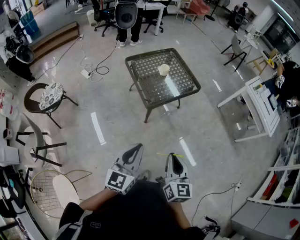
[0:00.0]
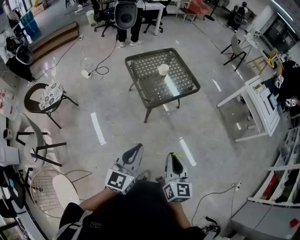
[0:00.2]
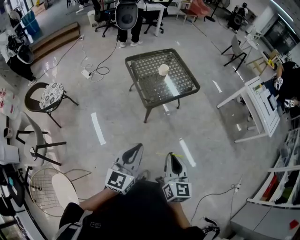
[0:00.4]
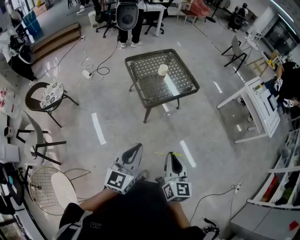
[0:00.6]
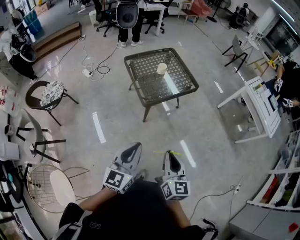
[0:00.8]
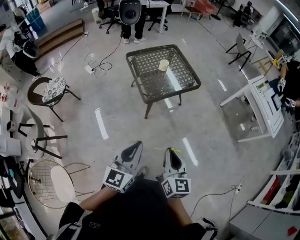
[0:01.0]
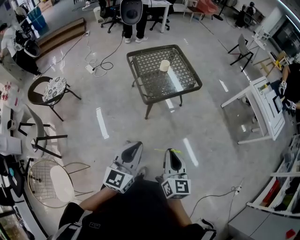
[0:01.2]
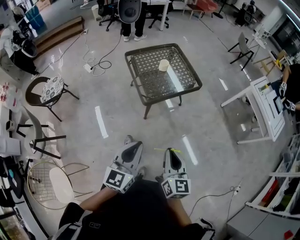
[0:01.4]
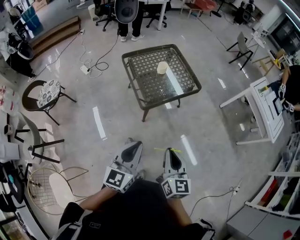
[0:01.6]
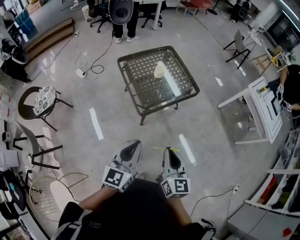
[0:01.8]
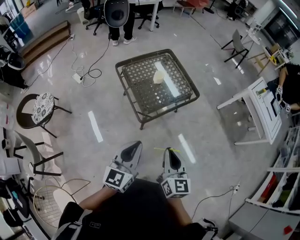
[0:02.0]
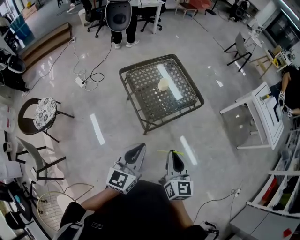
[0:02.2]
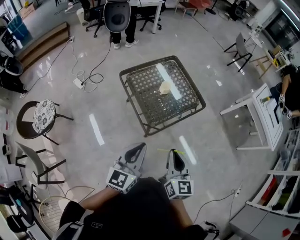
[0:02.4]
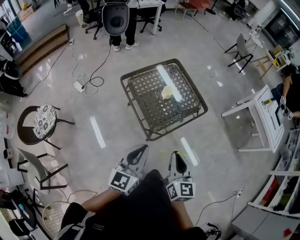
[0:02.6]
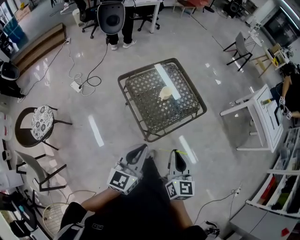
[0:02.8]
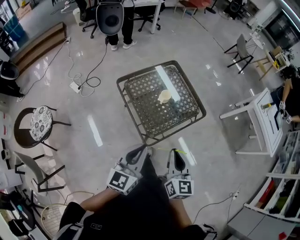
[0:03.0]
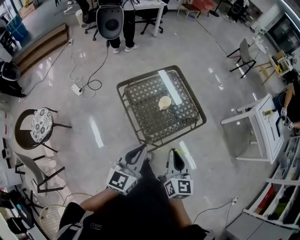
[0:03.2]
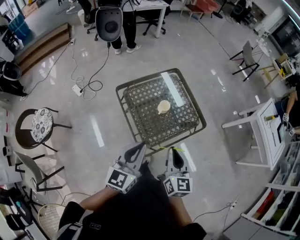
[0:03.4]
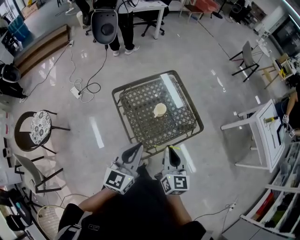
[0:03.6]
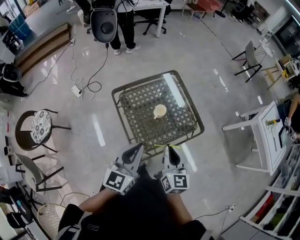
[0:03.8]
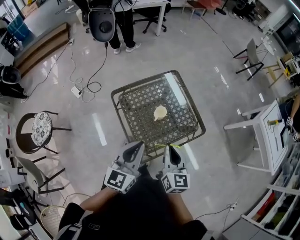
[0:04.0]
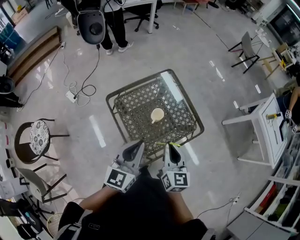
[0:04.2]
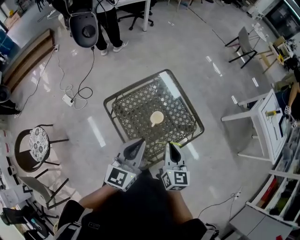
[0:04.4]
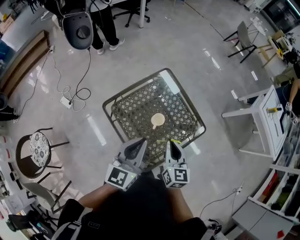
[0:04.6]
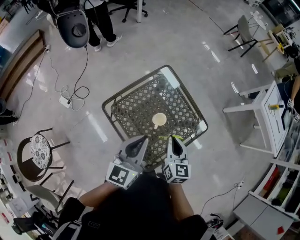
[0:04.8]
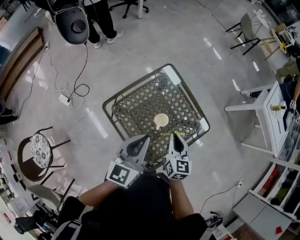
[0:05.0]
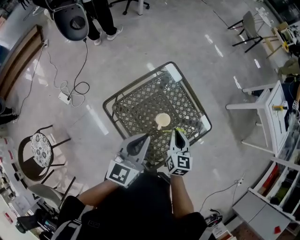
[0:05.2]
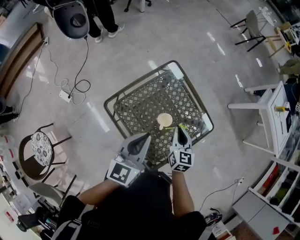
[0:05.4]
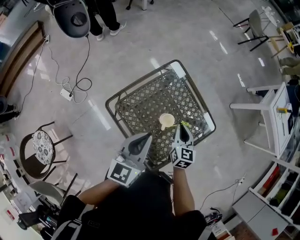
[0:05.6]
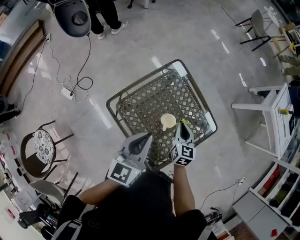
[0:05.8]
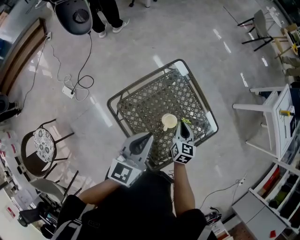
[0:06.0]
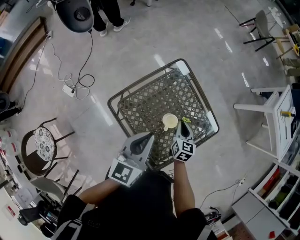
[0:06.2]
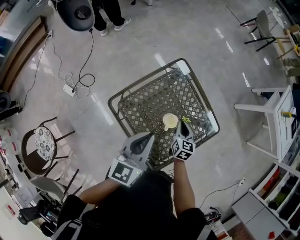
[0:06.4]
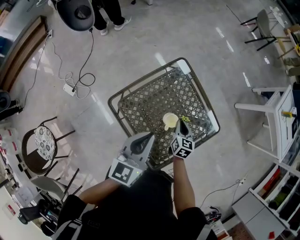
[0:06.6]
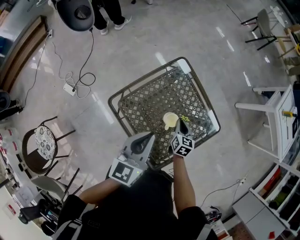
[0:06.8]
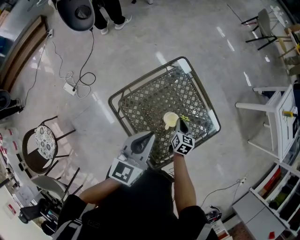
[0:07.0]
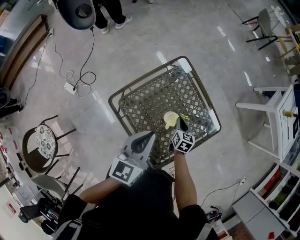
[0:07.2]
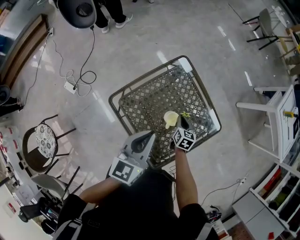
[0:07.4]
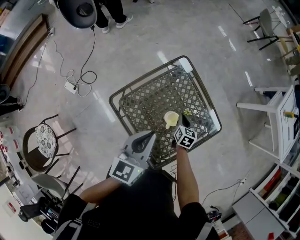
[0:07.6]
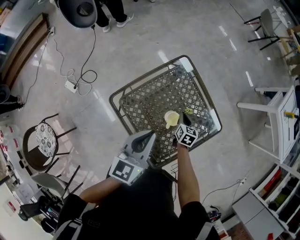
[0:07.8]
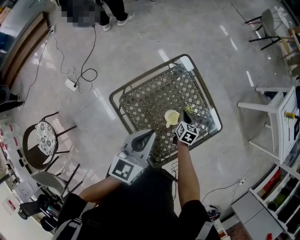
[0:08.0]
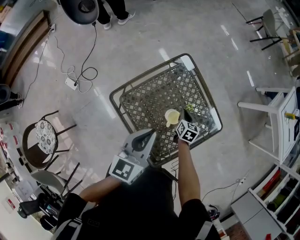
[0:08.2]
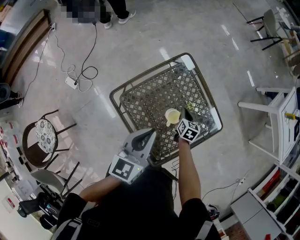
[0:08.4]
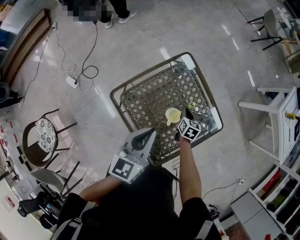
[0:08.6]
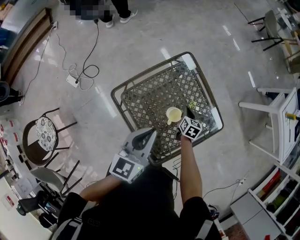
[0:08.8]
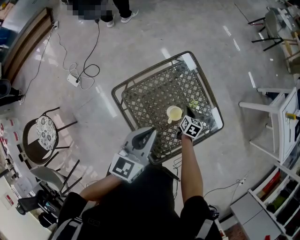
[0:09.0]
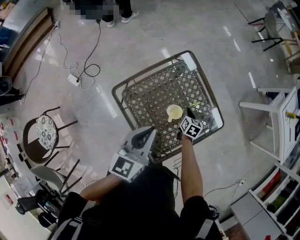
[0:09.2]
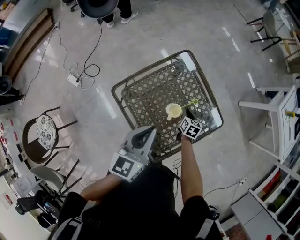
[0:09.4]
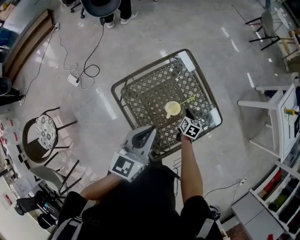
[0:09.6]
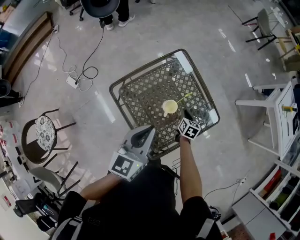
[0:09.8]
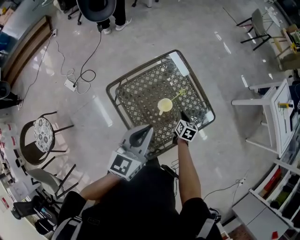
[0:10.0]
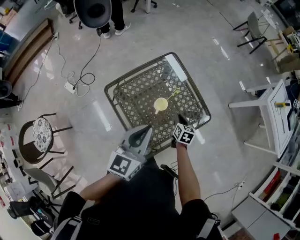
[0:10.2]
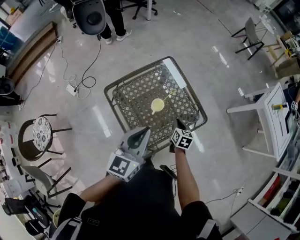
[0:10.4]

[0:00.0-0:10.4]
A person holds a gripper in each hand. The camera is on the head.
0:00.0 to 0:01.4: The two grippers go some 5 cm to the right.
0:01.4 to 0:03.0: Both grippers move forward and to the left, approximately 35 cm.
0:03.0 to 0:04.4: Both grippers travel together forward, about 25 cm.
0:04.4 to 0:06.0: The right gripper travels downward and forward by roughly 25 cm; the left gripper is displaced forward, to the left and downward by approximately 15 cm.
0:06.0 to 0:07.4: The right gripper moves downward, approximately 10 cm.
0:07.4 to 0:09.0: The grippers make only small movements.
0:09.0 to 0:10.4: The left gripper travels backward, to the right and upward by about 15 cm; the right gripper travels backward, upward and to the right by approximately 20 cm.

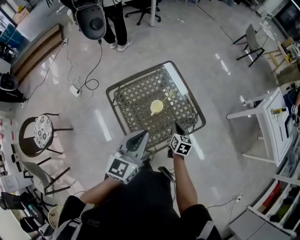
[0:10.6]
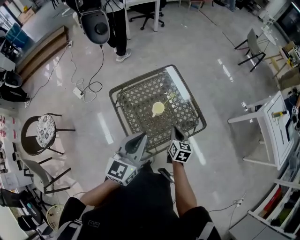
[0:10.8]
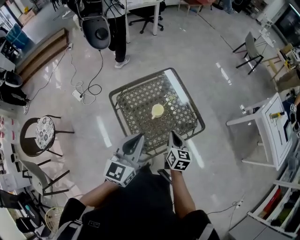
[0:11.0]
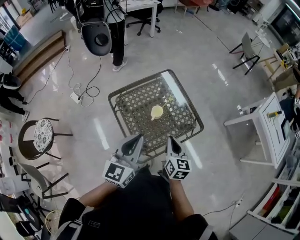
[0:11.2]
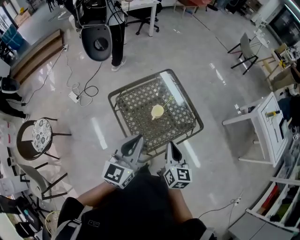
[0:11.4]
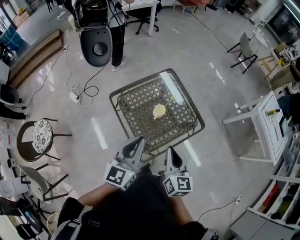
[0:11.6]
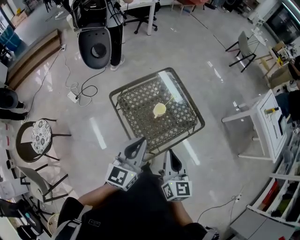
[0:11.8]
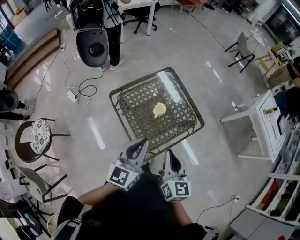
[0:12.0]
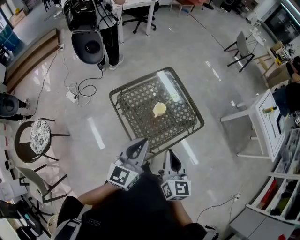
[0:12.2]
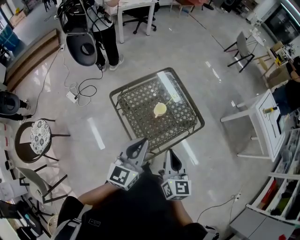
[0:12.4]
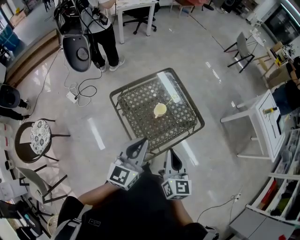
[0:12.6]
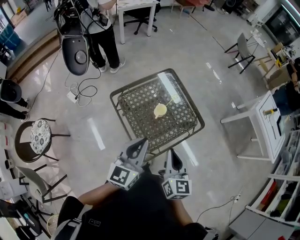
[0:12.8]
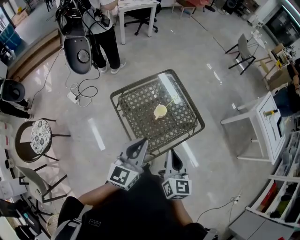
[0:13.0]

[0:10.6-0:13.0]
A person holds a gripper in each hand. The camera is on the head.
0:10.6 to 0:11.8: The right gripper heads upward, backward and to the left, covering about 30 cm, and swivels roughly 30 degrees, while the left gripper heads to the left and backward, covering approximately 10 cm.
0:11.8 to 0:13.0: The two grippers keep their place.

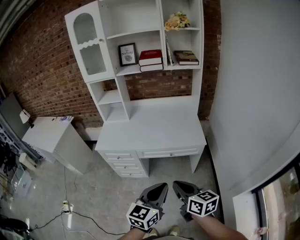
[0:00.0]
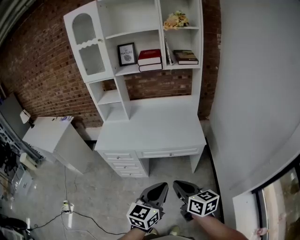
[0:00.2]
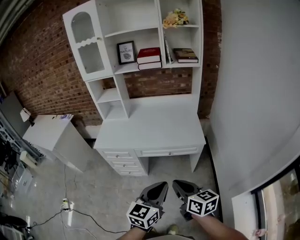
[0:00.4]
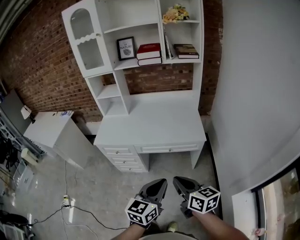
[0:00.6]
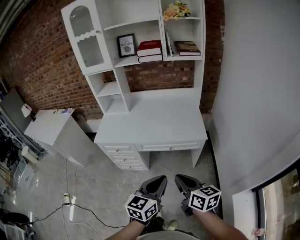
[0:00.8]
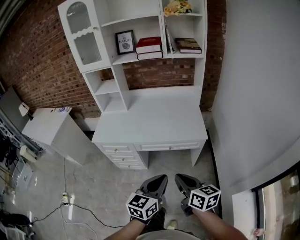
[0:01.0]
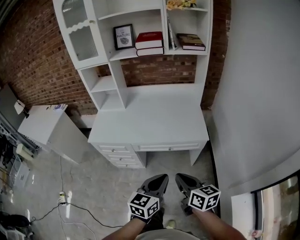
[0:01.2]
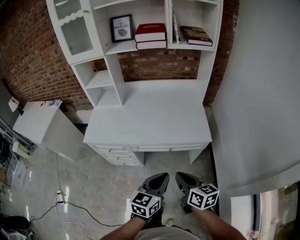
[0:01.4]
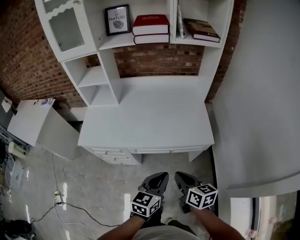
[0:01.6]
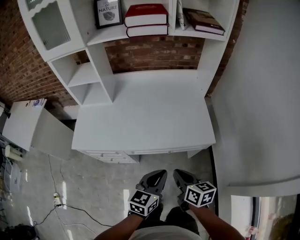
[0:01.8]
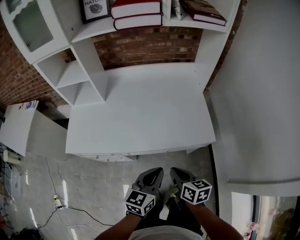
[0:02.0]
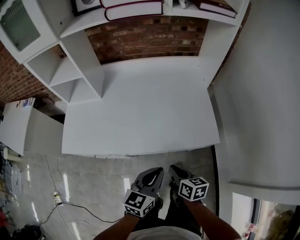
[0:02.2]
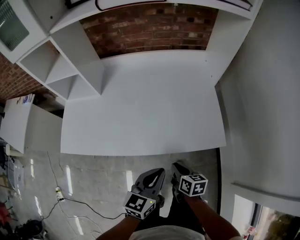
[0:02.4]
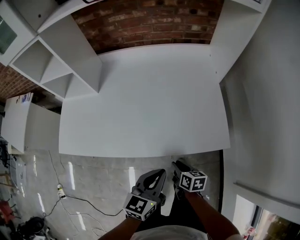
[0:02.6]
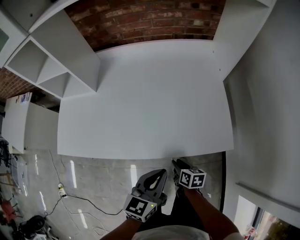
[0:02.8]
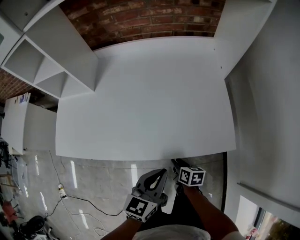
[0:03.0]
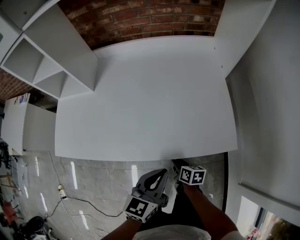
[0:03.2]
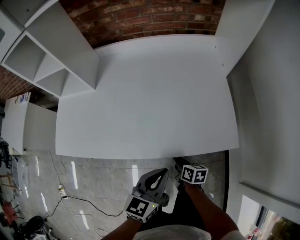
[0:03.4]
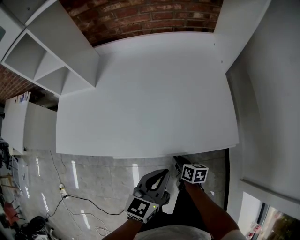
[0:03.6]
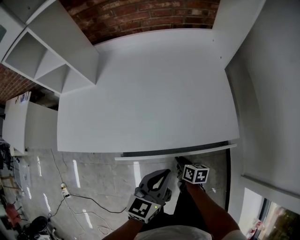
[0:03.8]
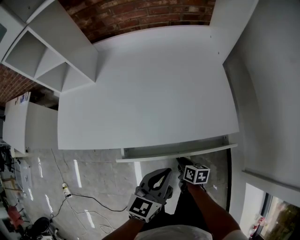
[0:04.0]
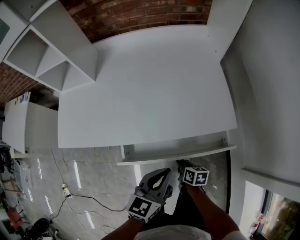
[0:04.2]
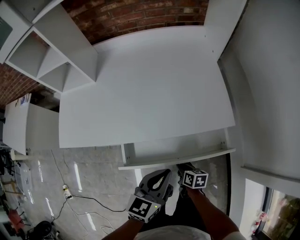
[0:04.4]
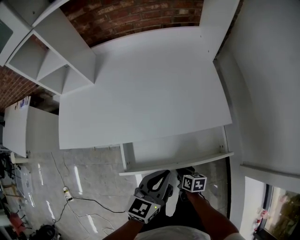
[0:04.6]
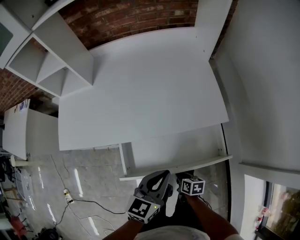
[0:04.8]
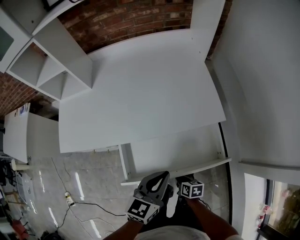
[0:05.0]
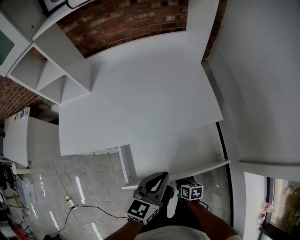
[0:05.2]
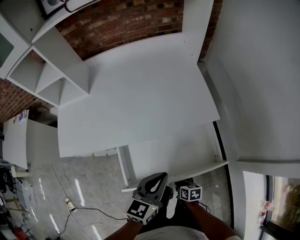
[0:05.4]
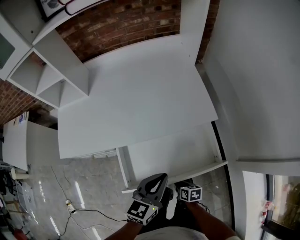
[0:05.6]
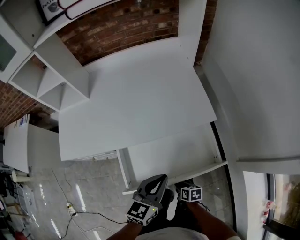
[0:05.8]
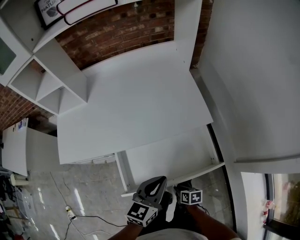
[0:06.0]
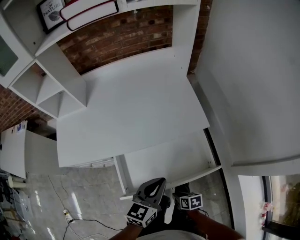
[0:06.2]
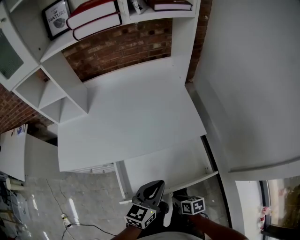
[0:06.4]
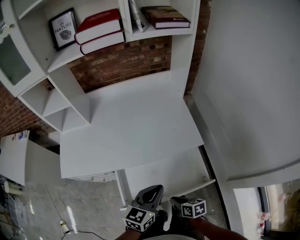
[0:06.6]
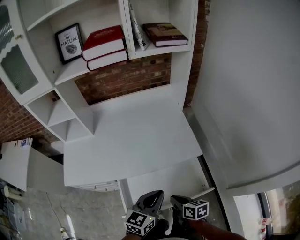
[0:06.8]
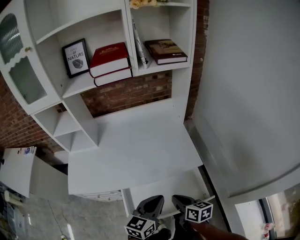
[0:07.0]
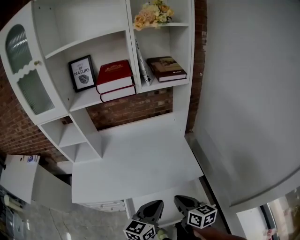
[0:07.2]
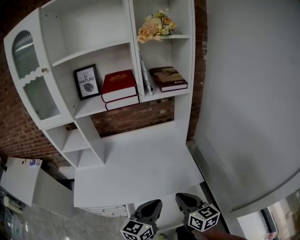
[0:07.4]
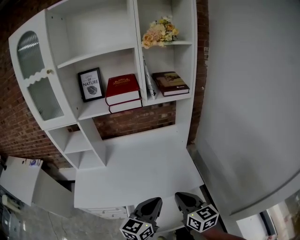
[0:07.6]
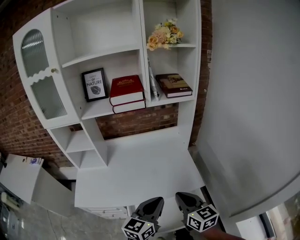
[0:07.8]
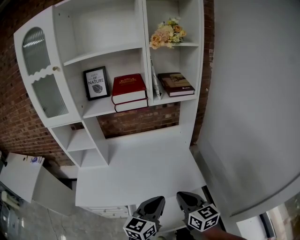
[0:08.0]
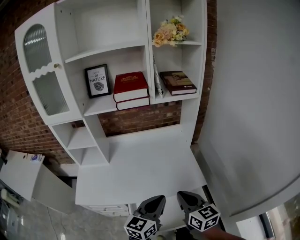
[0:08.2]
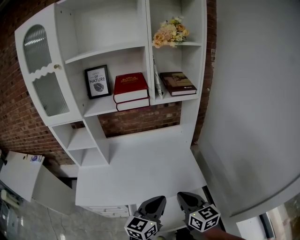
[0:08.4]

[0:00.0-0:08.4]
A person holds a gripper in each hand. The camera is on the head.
0:00.0 to 0:01.4: Both grippers travel together forward and downward, some 15 cm.
0:01.4 to 0:02.8: The left gripper is displaced forward and downward by some 30 cm. The right gripper goes about 40 cm downward and forward, and swivels approximately 30 degrees.
0:02.8 to 0:04.2: The two grippers go some 10 cm backward.
0:04.2 to 0:05.6: The left gripper moves backward, about 5 cm; the right gripper moves backward, about 15 cm.
0:05.6 to 0:07.0: The right gripper shifts some 35 cm upward and forward, and turns by some 30 degrees. The left gripper shifts roughly 10 cm upward.
0:07.0 to 0:08.4: The right gripper is displaced upward by some 20 cm, and rotates roughly 30 degrees. Meanwhile the left gripper moves upward, roughly 10 cm.

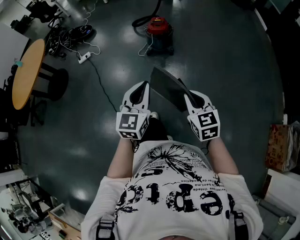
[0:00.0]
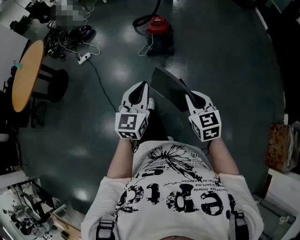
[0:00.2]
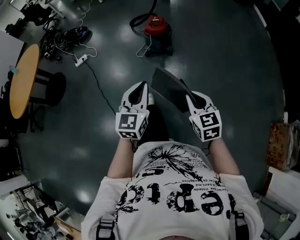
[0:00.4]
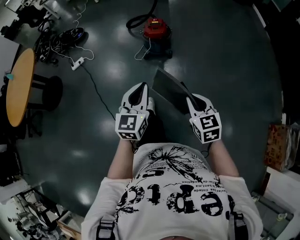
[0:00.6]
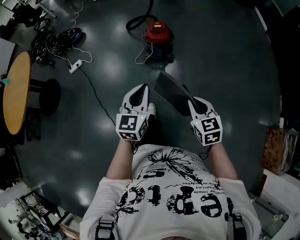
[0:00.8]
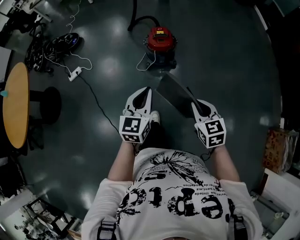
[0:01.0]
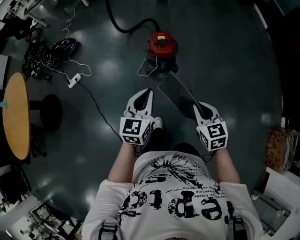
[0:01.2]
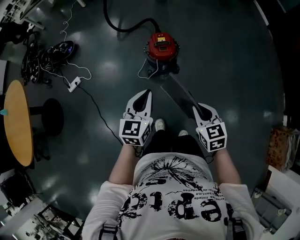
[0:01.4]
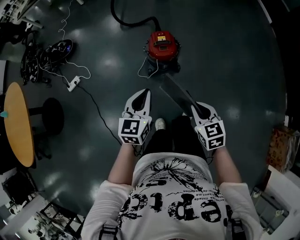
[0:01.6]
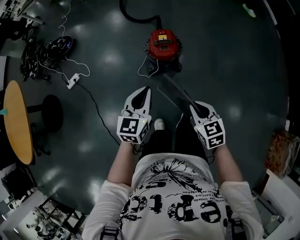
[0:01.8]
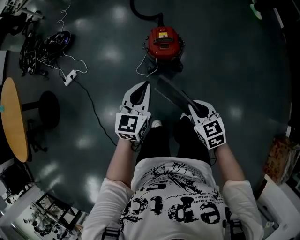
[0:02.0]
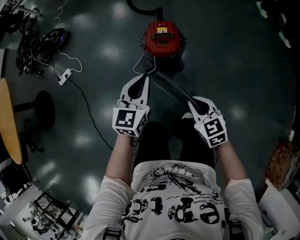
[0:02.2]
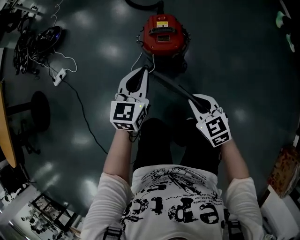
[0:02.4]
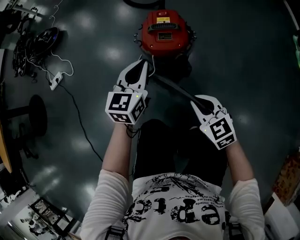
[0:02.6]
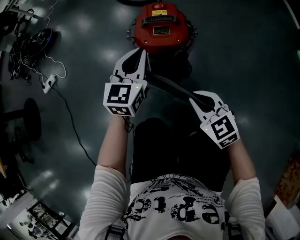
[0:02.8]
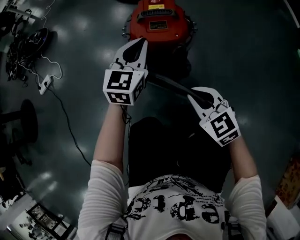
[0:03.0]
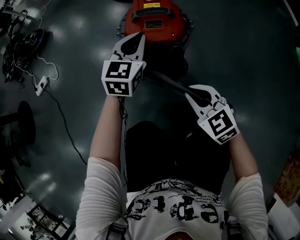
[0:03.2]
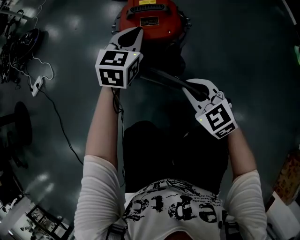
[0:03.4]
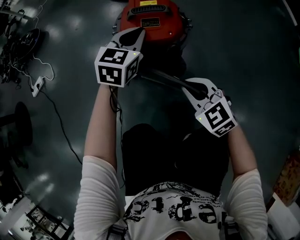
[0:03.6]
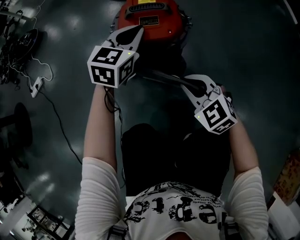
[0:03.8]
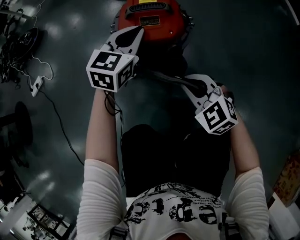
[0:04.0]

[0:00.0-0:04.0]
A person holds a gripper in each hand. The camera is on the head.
0:00.0 to 0:01.4: The pair of grippers is taken forward, some 50 cm.
0:01.4 to 0:02.6: Both grippers travel together downward and forward, approximately 40 cm. The right gripper changes its angle by some 20 degrees.
0:02.6 to 0:04.0: The right gripper shifts about 15 cm downward and forward, and turns by about 20 degrees; the left gripper goes some 20 cm downward, forward and to the right.
